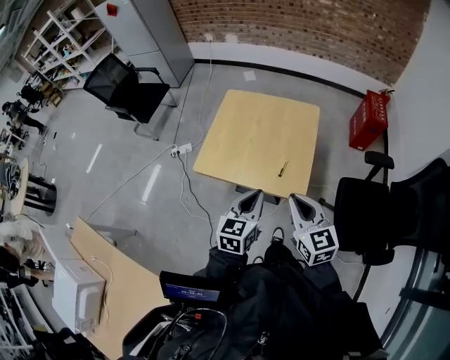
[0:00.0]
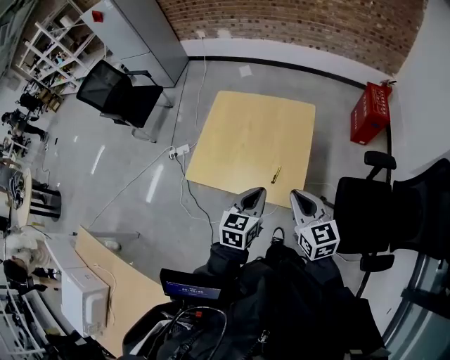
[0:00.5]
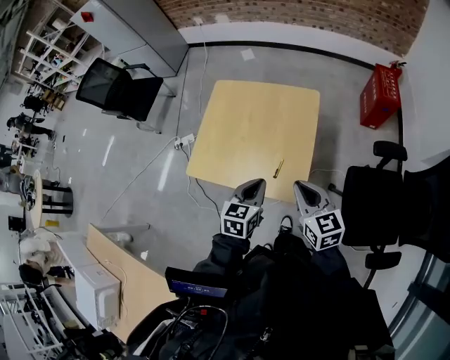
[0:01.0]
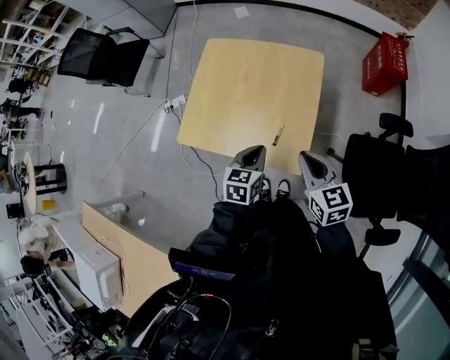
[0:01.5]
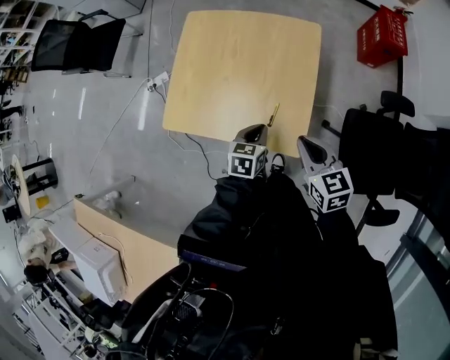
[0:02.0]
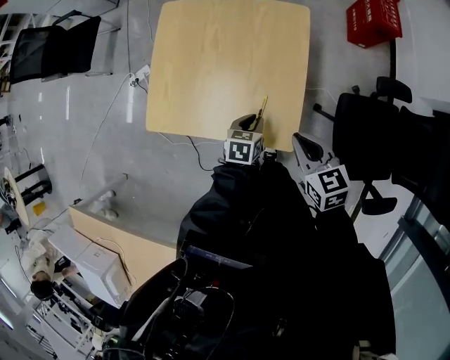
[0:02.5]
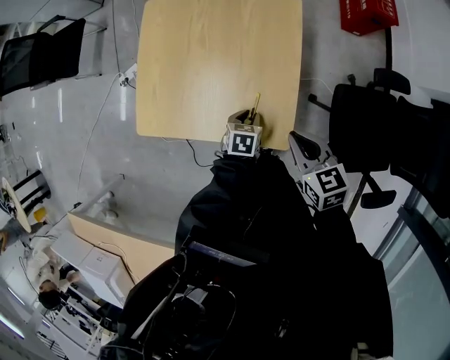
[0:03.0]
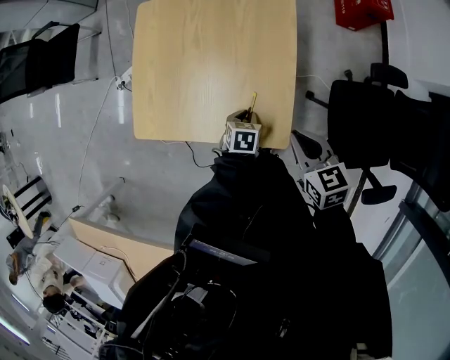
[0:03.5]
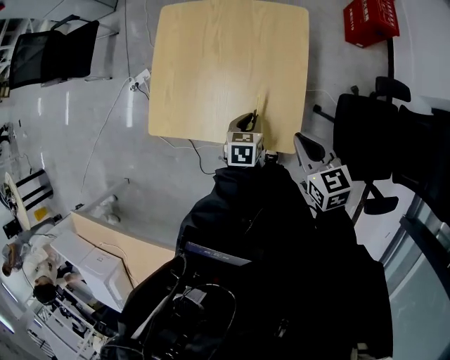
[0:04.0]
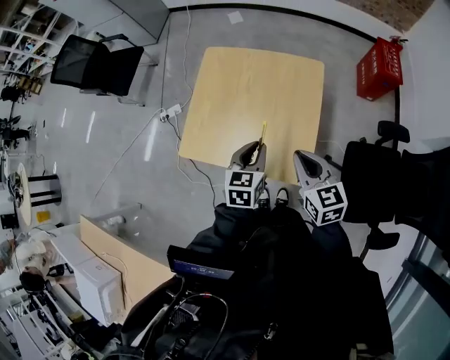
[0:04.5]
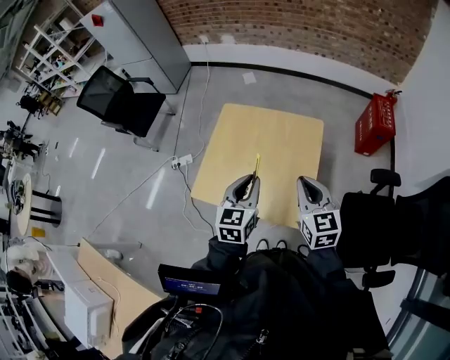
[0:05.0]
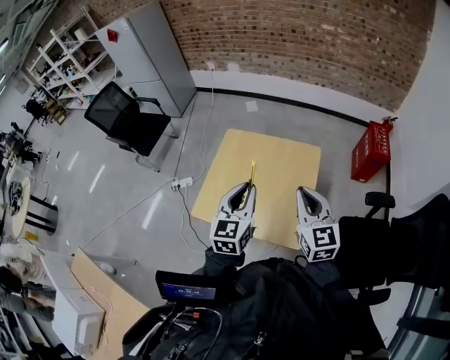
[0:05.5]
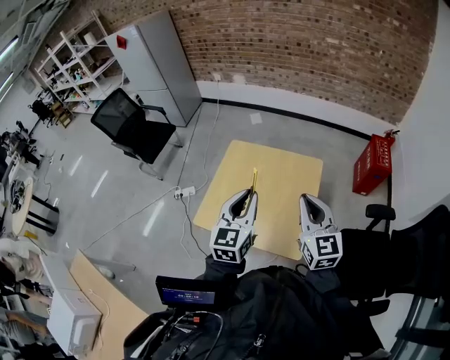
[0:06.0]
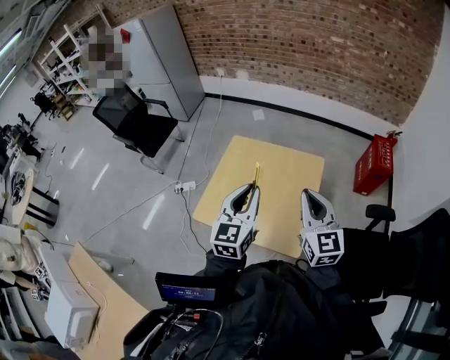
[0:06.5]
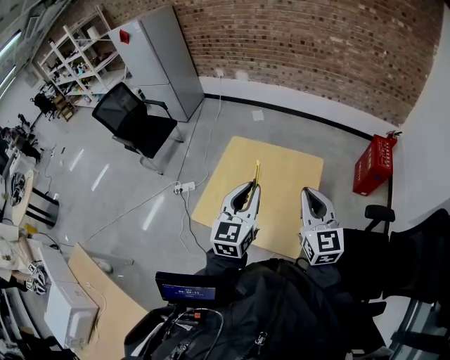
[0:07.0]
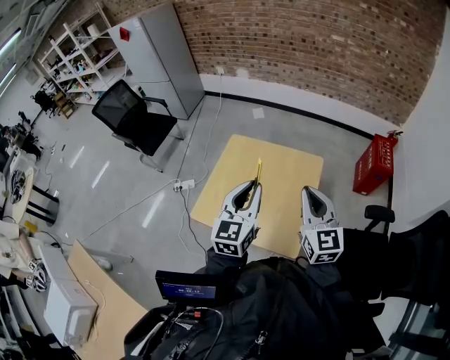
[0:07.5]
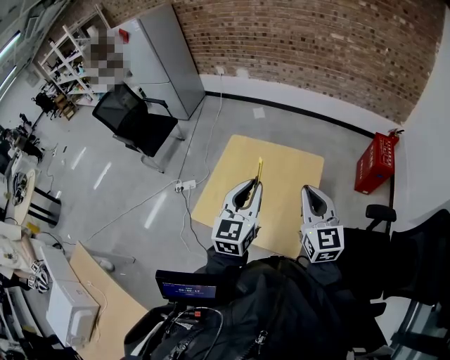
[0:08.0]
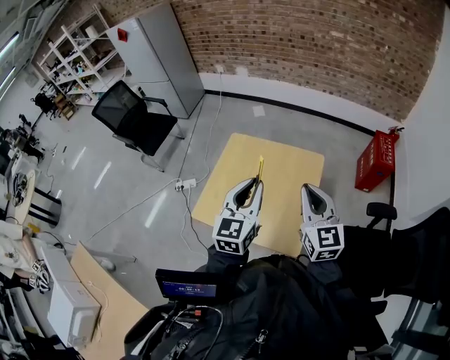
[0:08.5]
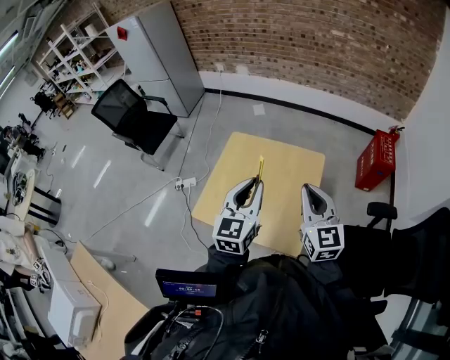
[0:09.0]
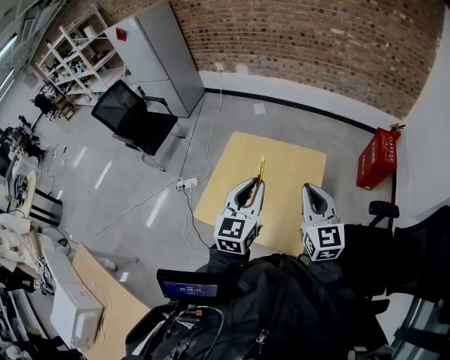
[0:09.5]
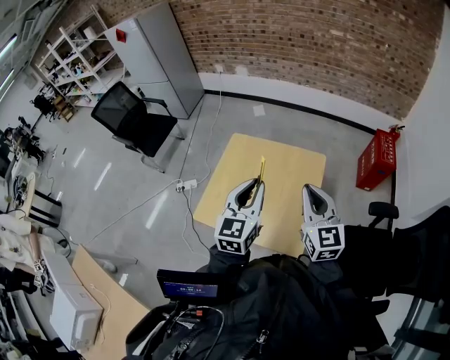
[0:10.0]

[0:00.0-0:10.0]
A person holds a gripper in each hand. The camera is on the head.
0:00.0 to 0:02.0: The right gripper goes roughly 25 cm forward, downward and to the right, and changes its angle by some 20 degrees. Meanwhile the left gripper is displaced downward and forward by roughly 30 cm, and changes its angle by approximately 30 degrees.
0:02.0 to 0:04.0: The left gripper shifts some 5 cm downward.
0:04.0 to 0:06.0: The left gripper travels upward by about 40 cm, and points its fingers some 50 degrees further upward. The right gripper goes some 25 cm upward, and tips its fingers upward by approximately 30 degrees.
0:06.0 to 0:10.0: The grippers make only small movements.

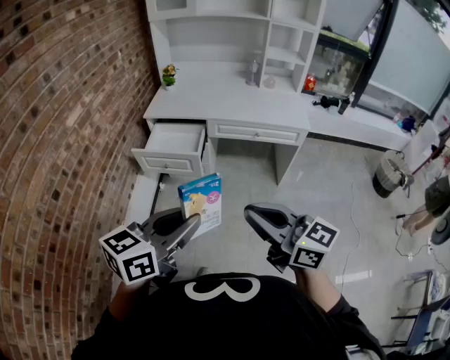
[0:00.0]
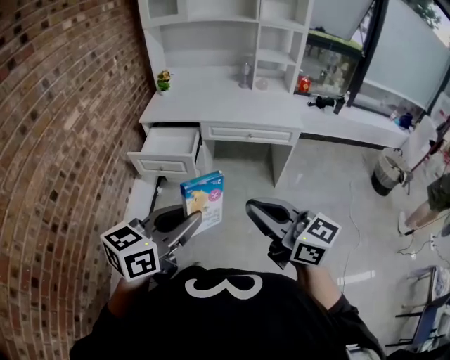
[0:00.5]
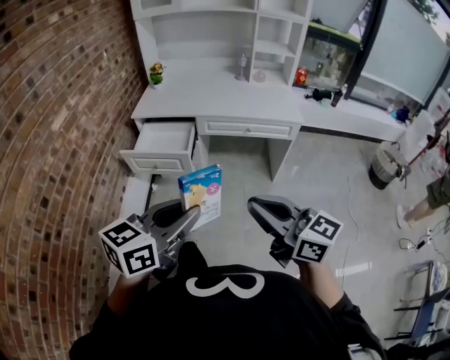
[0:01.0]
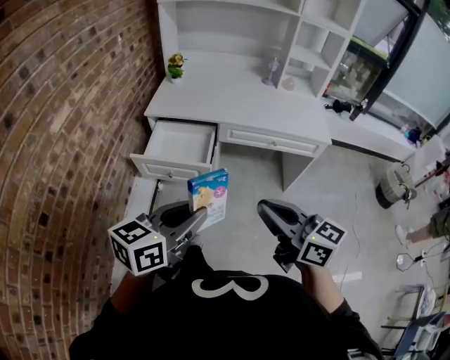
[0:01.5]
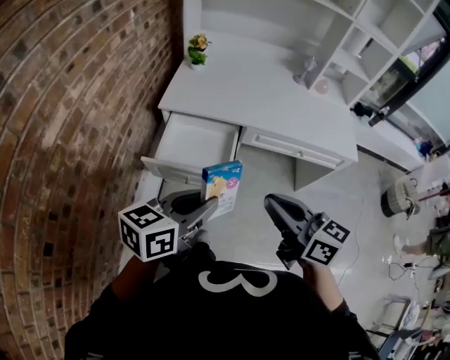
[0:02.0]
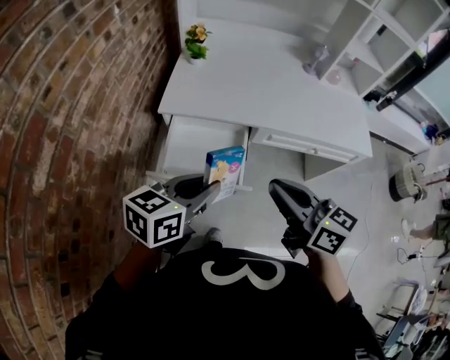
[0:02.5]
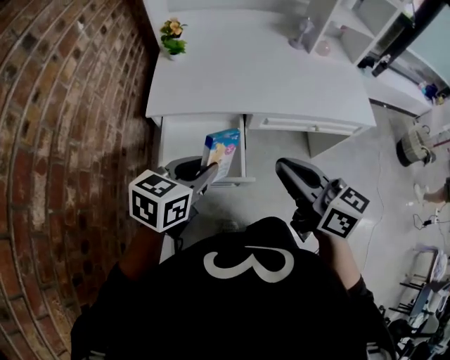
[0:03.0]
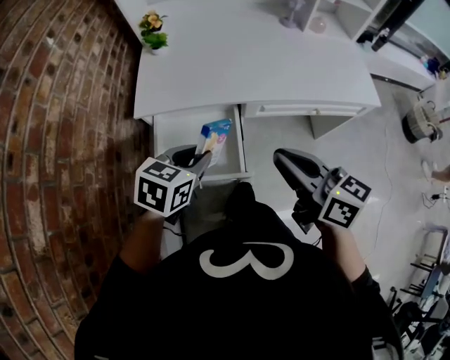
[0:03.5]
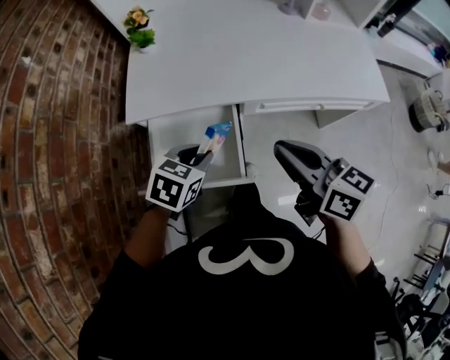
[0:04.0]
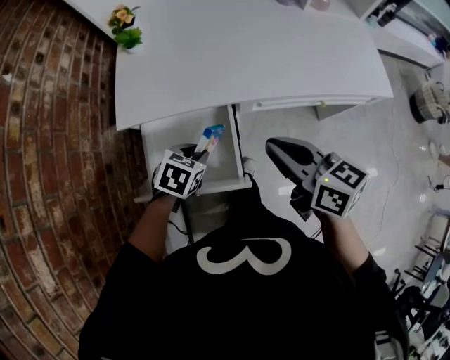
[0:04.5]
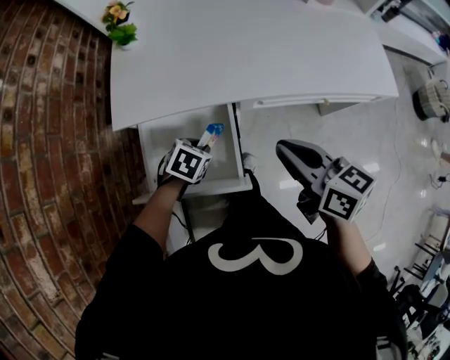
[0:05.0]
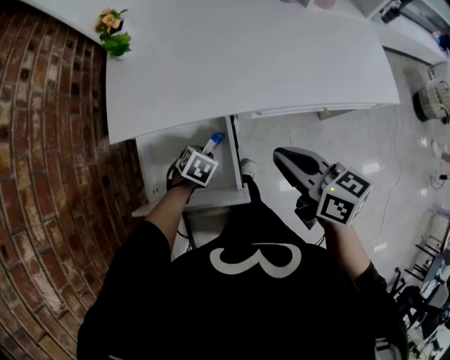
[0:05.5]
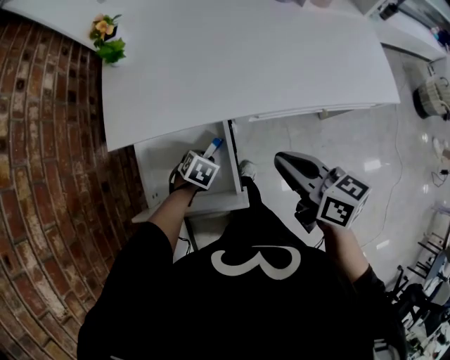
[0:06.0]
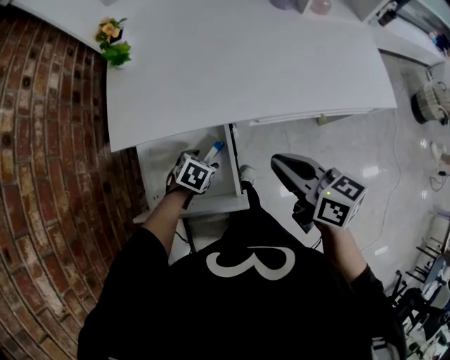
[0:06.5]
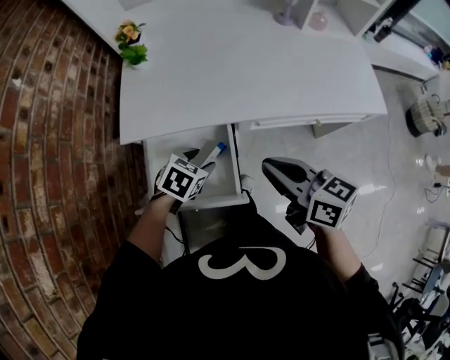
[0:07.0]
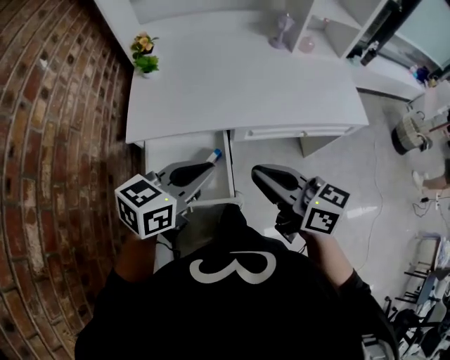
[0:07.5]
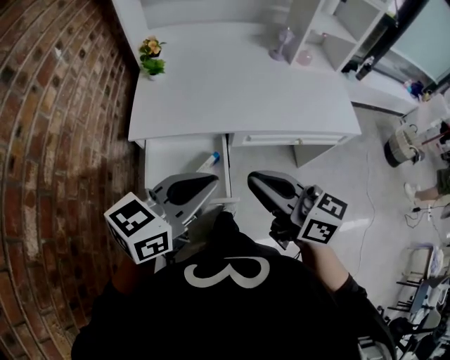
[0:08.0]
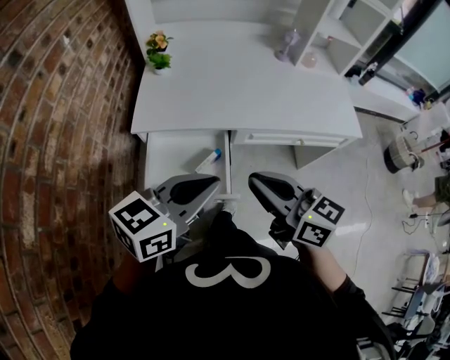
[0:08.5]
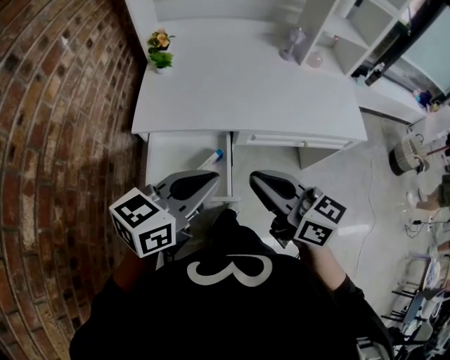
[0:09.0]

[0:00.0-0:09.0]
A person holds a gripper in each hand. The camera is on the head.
0:00.0 to 0:02.0: The left gripper is displaced forward and to the left by some 35 cm. Meanwhile the right gripper travels forward by some 30 cm.
0:02.0 to 0:04.5: The right gripper moves forward and downward, some 25 cm; the left gripper travels downward and forward by some 35 cm, and tips its fingers downward by approximately 50 degrees.
0:04.5 to 0:07.0: The left gripper goes downward and returns, approximately 15 cm each way, and opens.
0:07.0 to 0:09.0: The right gripper shifts about 10 cm upward and backward. Meanwhile the left gripper is displaced upward and backward by approximately 30 cm, tilts its fingers some 50 degrees upward, and closes.

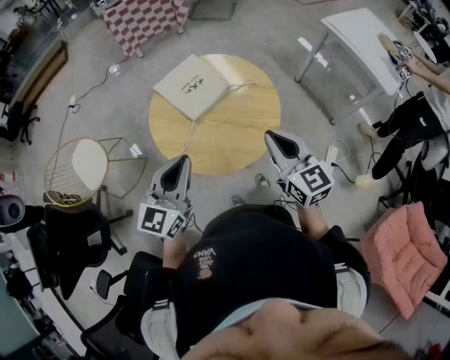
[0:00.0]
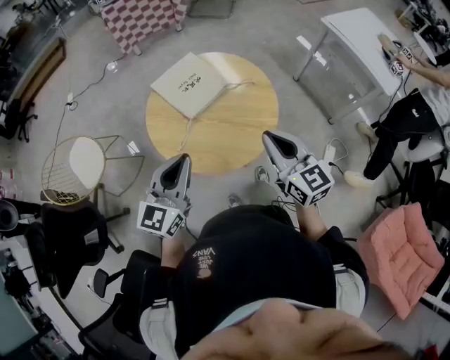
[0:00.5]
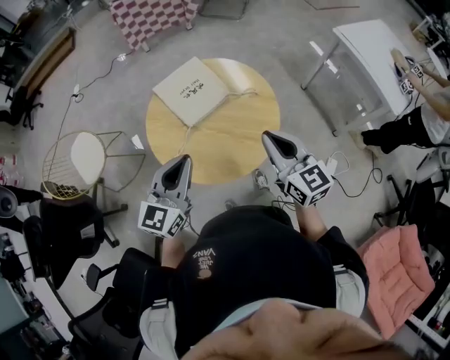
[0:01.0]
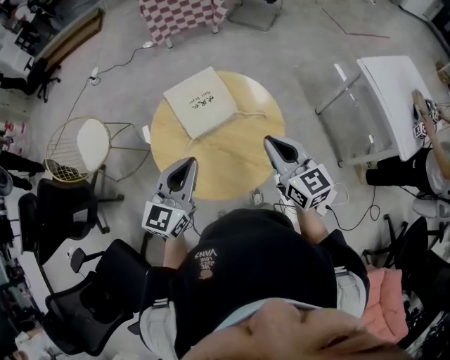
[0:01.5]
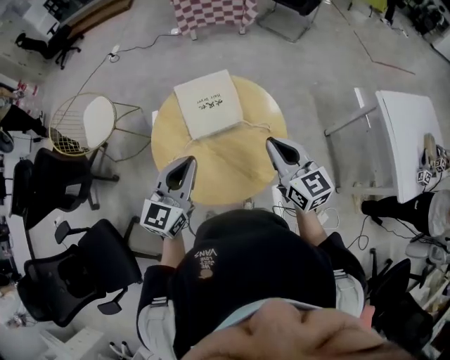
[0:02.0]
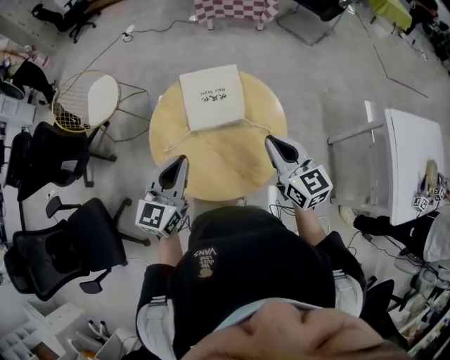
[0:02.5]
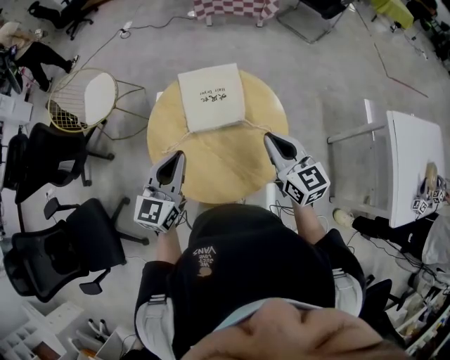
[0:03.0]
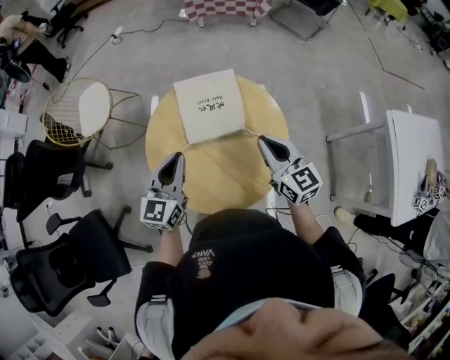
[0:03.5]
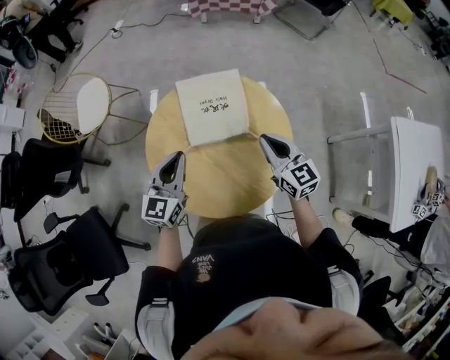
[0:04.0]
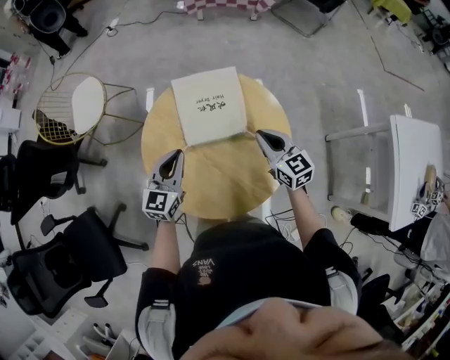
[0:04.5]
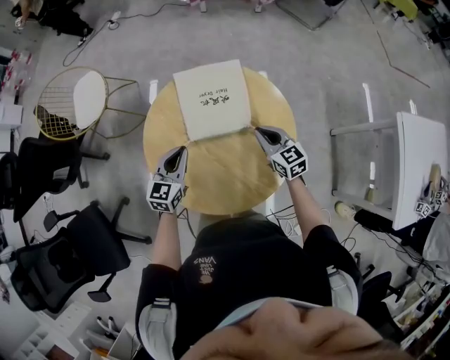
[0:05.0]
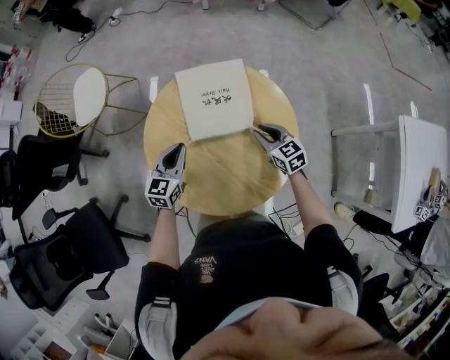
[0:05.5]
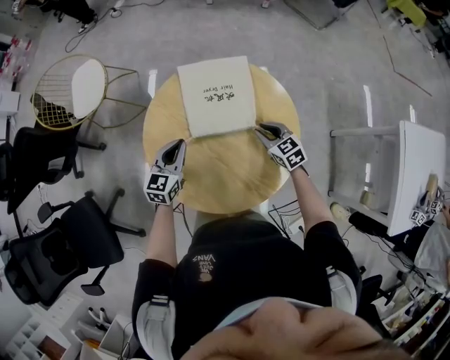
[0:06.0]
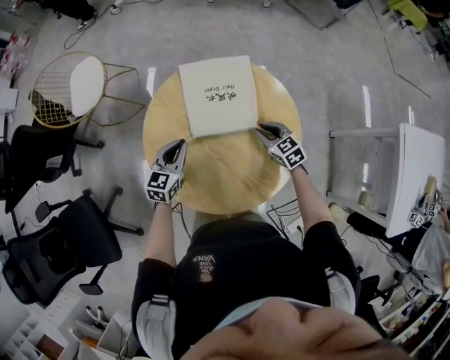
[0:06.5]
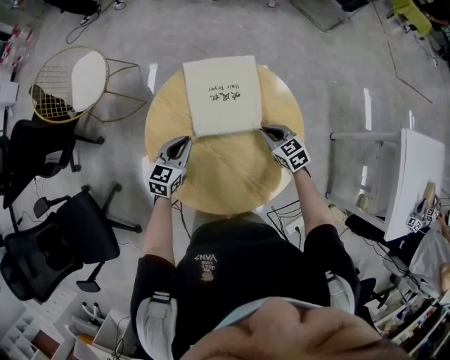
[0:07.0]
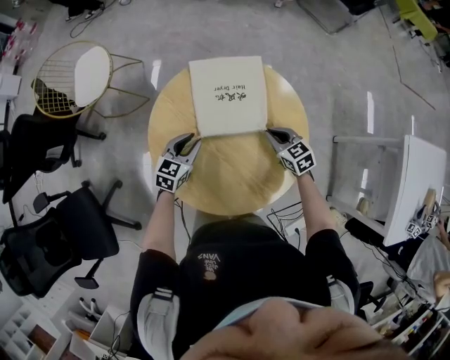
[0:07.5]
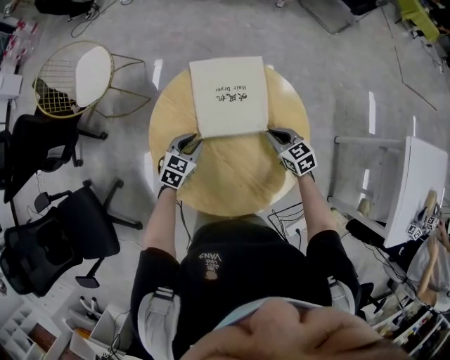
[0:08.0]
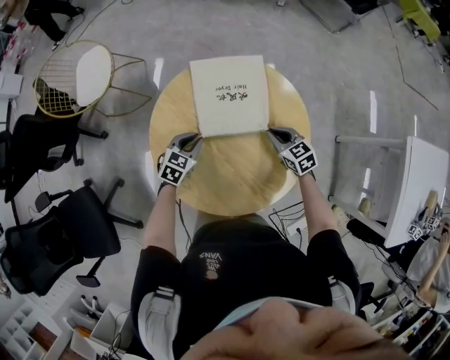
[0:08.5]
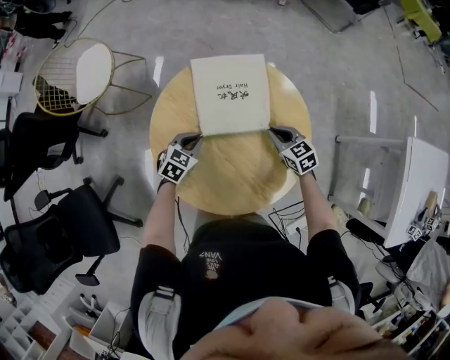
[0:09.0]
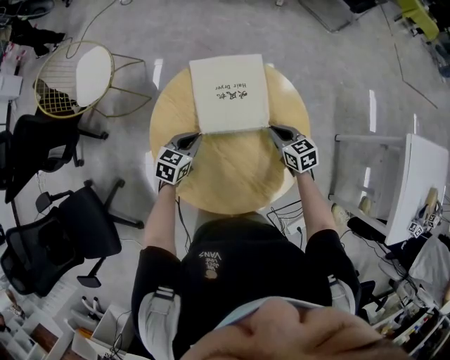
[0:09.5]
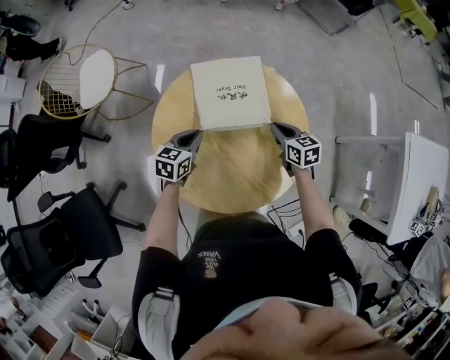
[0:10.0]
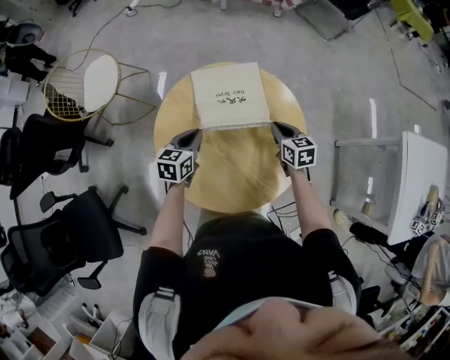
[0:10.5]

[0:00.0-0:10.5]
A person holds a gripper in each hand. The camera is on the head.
0:00.0 to 0:02.0: The left gripper ends up some 15 cm from where it was, and changes its angle by about 20 degrees, while the right gripper ends up roughly 20 cm from where it was, and swivels roughly 30 degrees.
0:02.0 to 0:04.0: Both grippers move forward and downward, approximately 15 cm.
0:04.0 to 0:06.5: The grippers both shift downward by roughly 20 cm. The right gripper swivels about 30 degrees.
0:06.5 to 0:08.5: The left gripper shifts about 5 cm downward, and changes its angle by some 20 degrees.
0:08.5 to 0:10.5: The left gripper heads upward, covering about 10 cm, and rotates about 30 degrees. Meanwhile the right gripper heads upward, covering some 5 cm, and rotates about 20 degrees.
